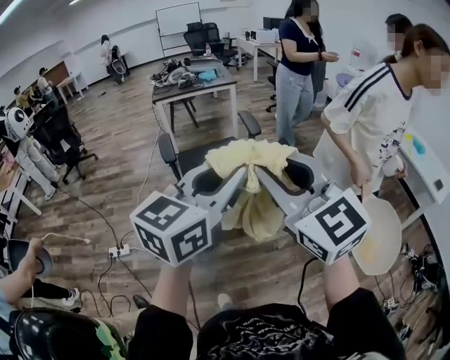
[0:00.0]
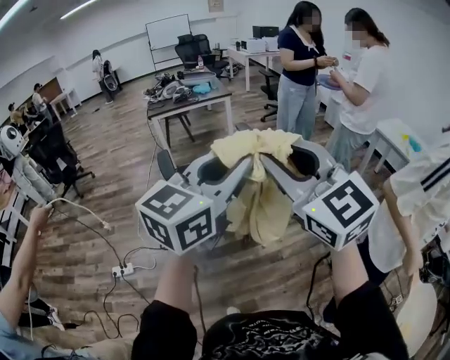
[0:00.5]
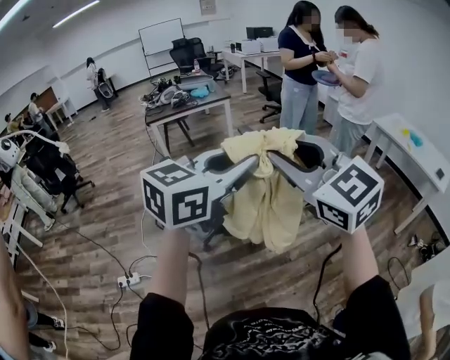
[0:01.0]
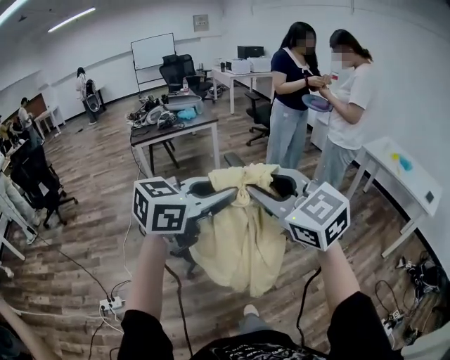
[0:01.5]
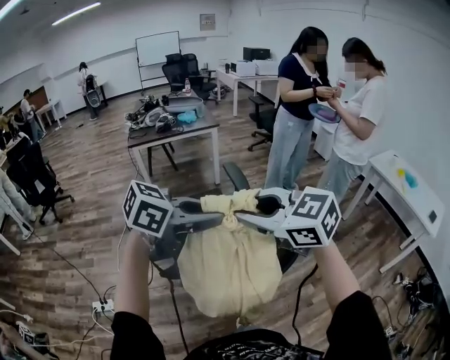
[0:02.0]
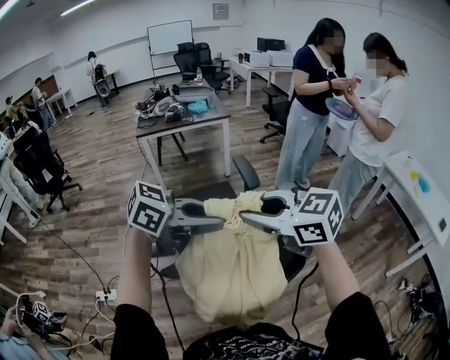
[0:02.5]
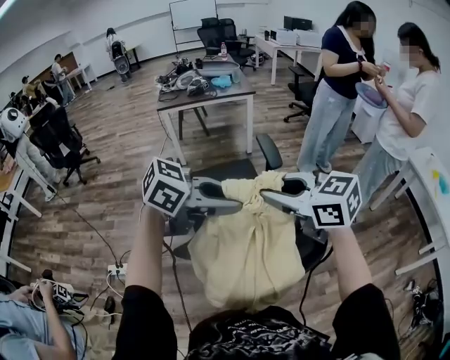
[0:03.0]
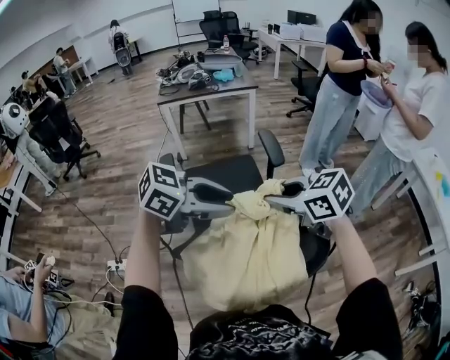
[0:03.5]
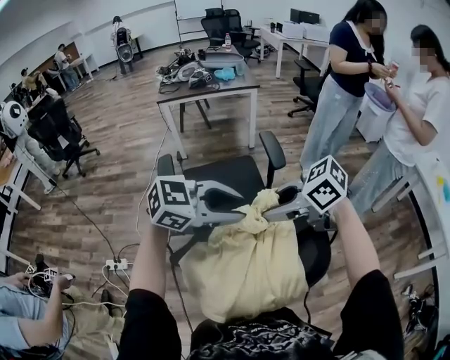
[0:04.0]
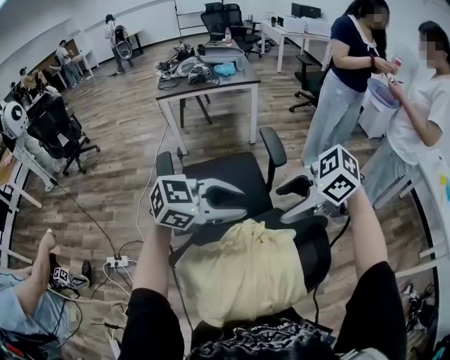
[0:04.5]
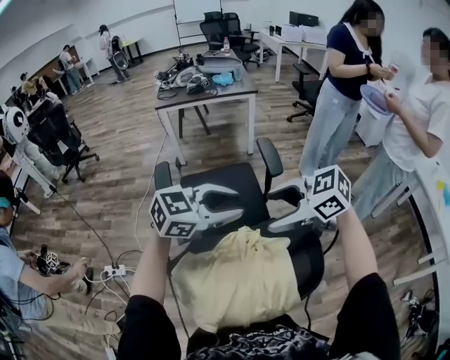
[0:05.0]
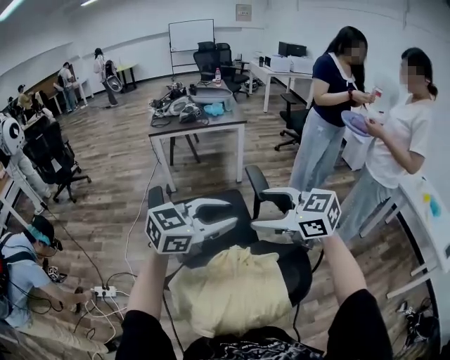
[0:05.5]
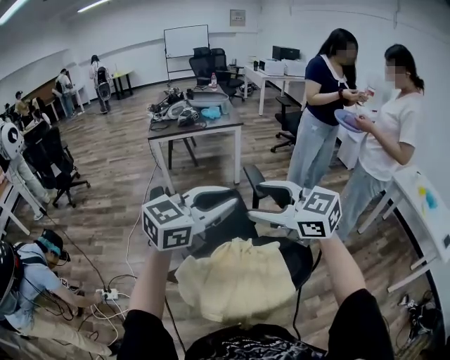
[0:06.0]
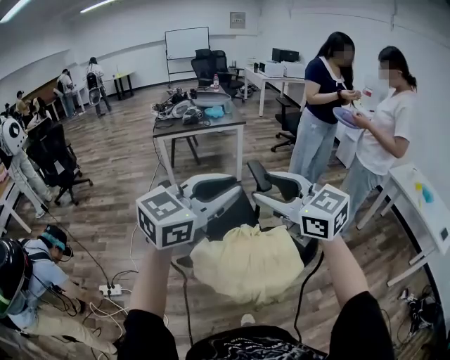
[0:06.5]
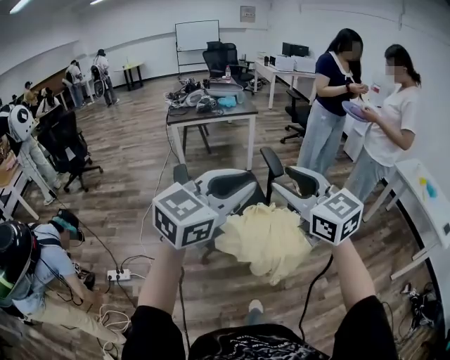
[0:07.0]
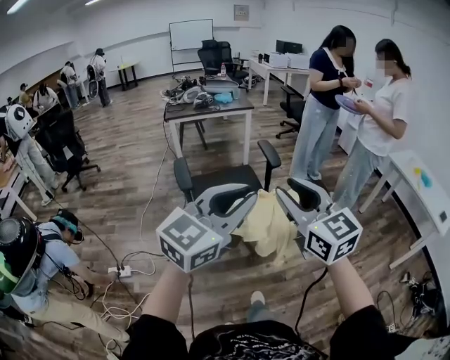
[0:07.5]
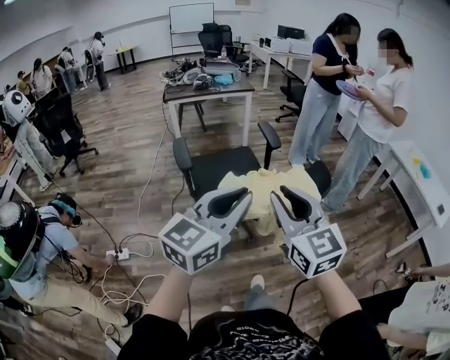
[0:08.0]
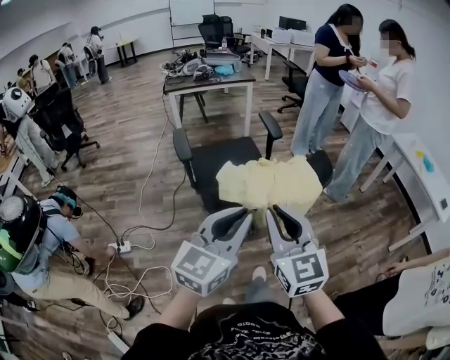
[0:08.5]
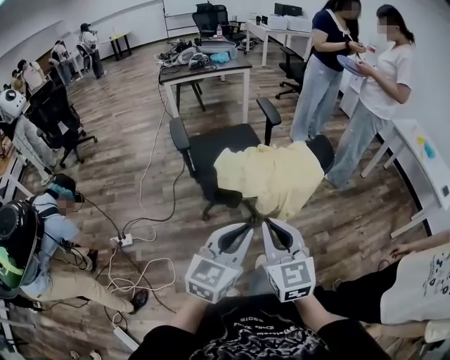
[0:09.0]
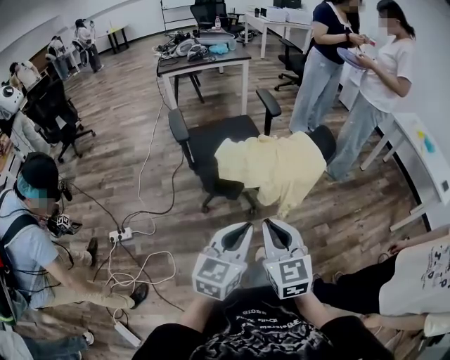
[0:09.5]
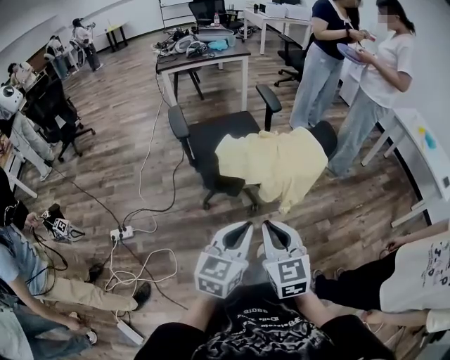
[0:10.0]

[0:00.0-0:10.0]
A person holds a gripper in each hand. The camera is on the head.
0.0 to 2.0 s: The left gripper changes place by approximately 25 cm, and turns by some 40 degrees; the right gripper ends up some 25 cm from where it was, and turns by about 30 degrees.
2.0 to 4.0 s: The left gripper is displaced downward by about 10 cm. Meanwhile the right gripper goes some 15 cm downward, and swivels approximately 40 degrees.
4.0 to 6.0 s: Both grippers travel together upward, roughly 10 cm. The left gripper turns by approximately 30 degrees. The right gripper turns by about 40 degrees.
6.0 to 8.0 s: The grippers both shift backward by approximately 25 cm. The right gripper turns by about 40 degrees, and closes up.
8.0 to 10.0 s: The left gripper is displaced downward by approximately 20 cm, and swivels approximately 20 degrees. The right gripper is displaced downward and backward by some 20 cm.

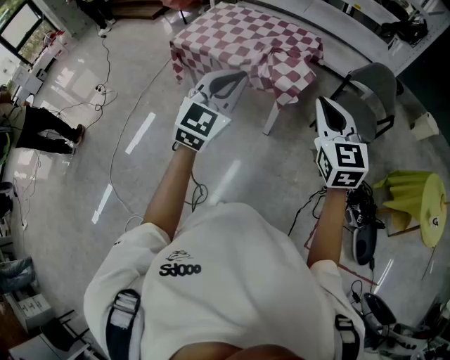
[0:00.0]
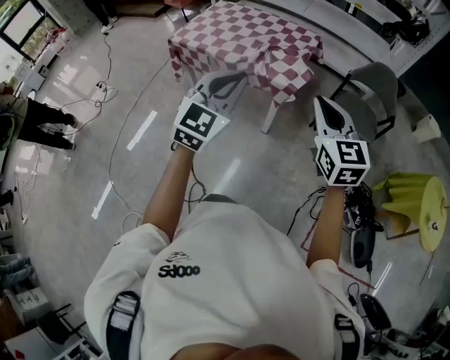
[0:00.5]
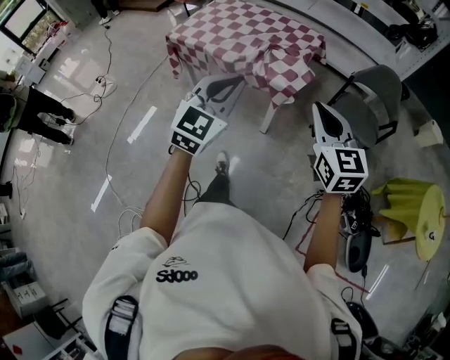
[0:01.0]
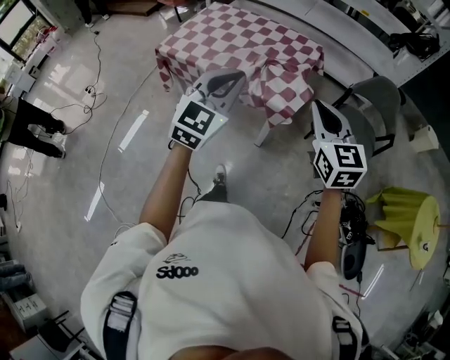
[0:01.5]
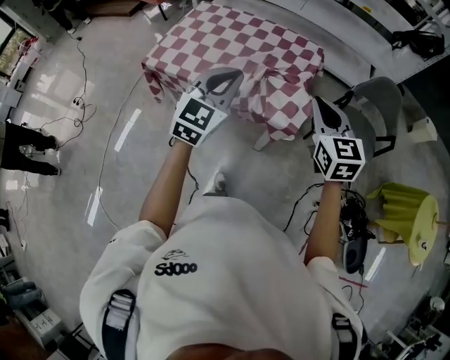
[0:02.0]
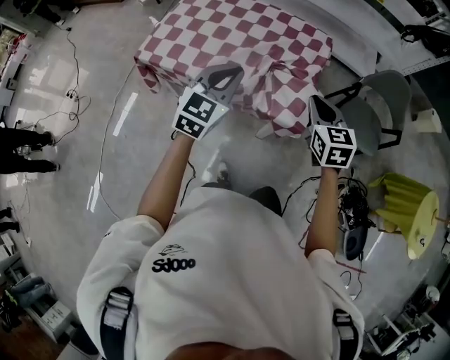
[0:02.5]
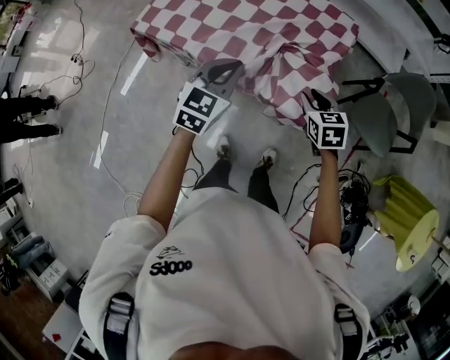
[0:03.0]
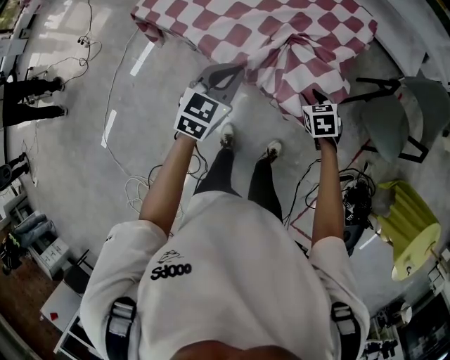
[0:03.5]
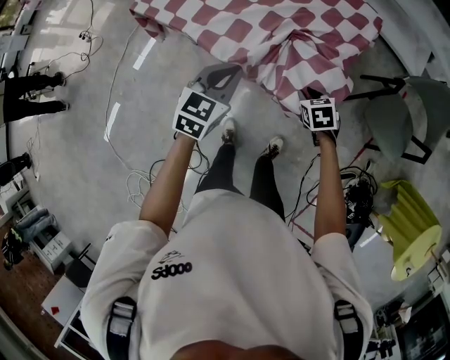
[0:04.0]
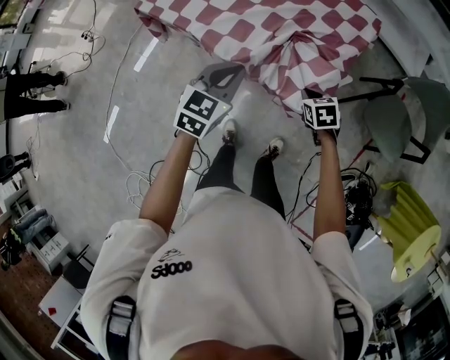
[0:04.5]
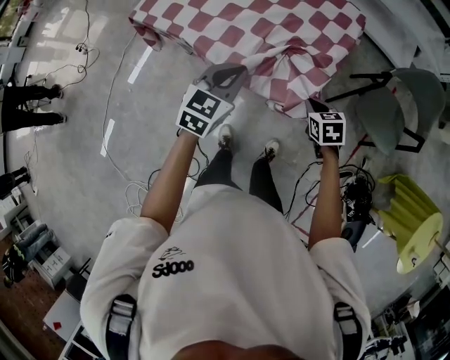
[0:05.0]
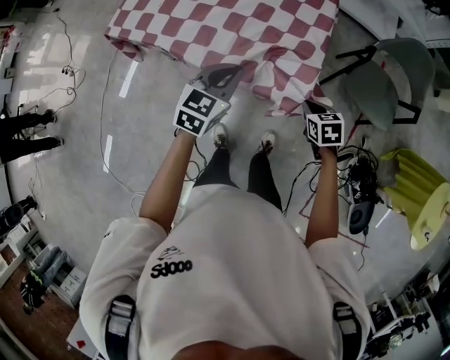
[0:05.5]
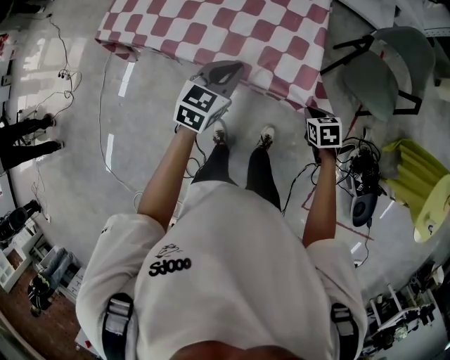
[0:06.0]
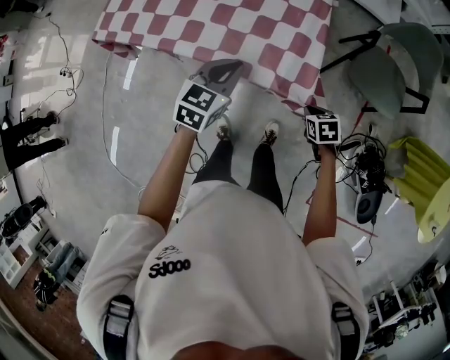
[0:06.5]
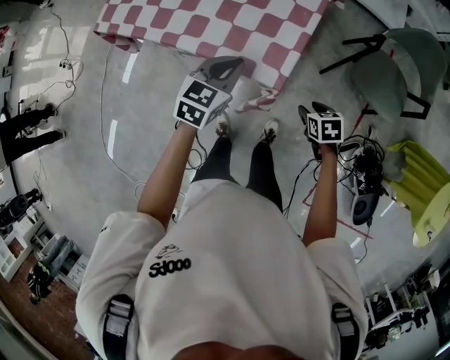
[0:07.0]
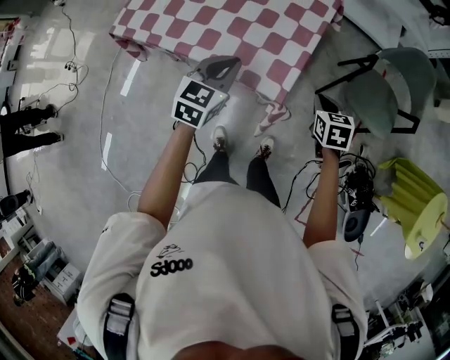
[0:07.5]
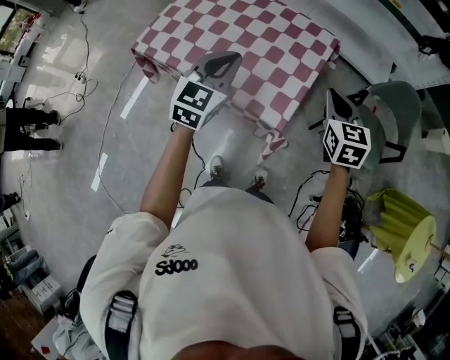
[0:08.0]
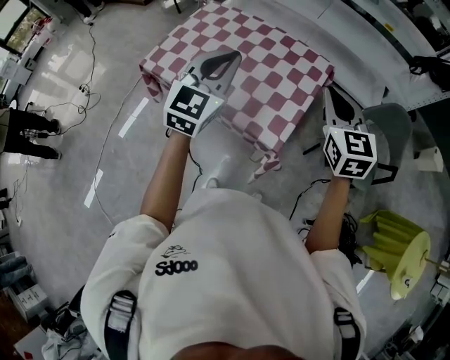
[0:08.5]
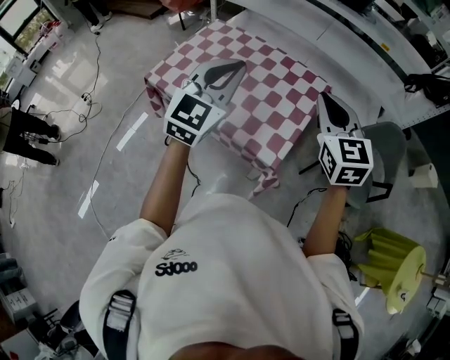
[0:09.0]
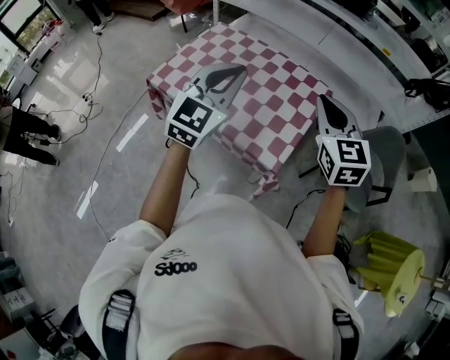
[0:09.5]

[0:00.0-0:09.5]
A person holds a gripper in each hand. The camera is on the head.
0.0 to 2.0 s: Both grippers move forward, some 30 cm.
2.0 to 4.0 s: The left gripper heads downward, covering about 25 cm, and changes its angle by some 30 degrees, while the right gripper moves downward, roughly 40 cm, points its fingers about 40 degrees further downward, and opens.
4.0 to 5.5 s: The right gripper is displaced to the right, backward and upward by some 15 cm, and closes its fingers. Meanwhile the left gripper goes about 10 cm to the right.
5.5 to 7.5 s: The right gripper shifts by approximately 5 cm, and opens, then closes again.
7.5 to 9.5 s: The left gripper travels upward by some 25 cm, and turns by some 30 degrees. Meanwhile the right gripper shifts some 40 cm upward and to the left, and angles its fingers upward, by approximately 40 degrees.

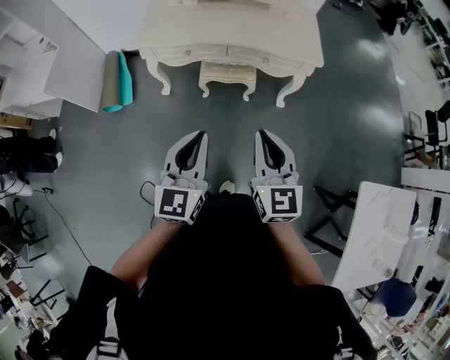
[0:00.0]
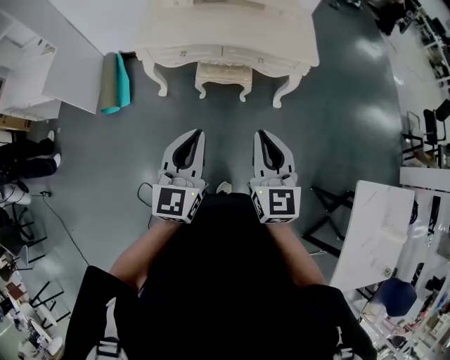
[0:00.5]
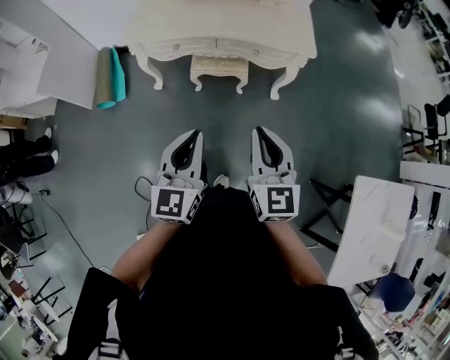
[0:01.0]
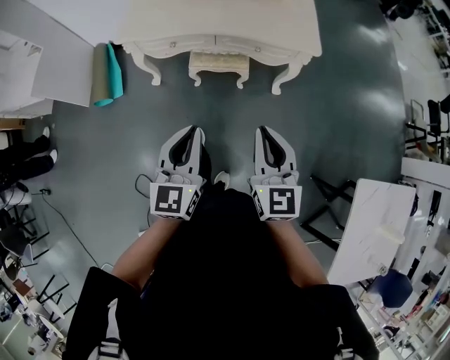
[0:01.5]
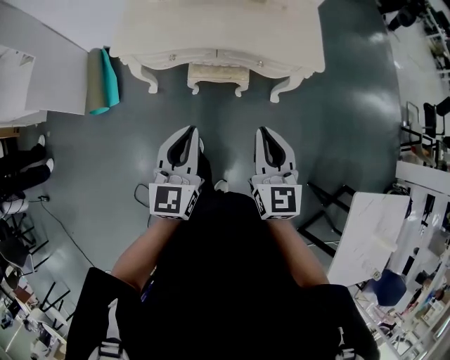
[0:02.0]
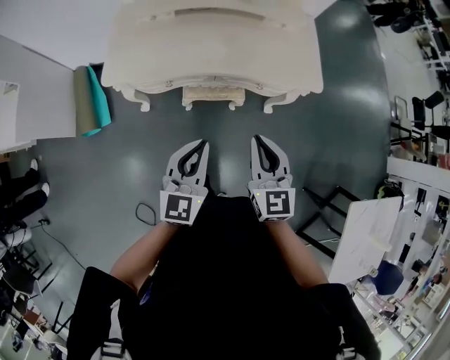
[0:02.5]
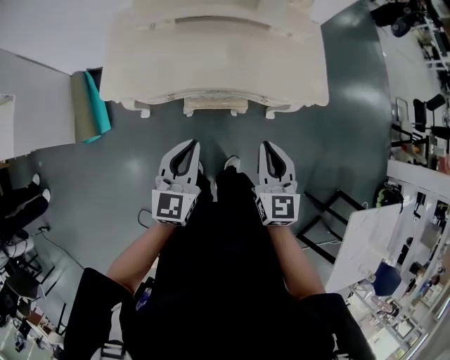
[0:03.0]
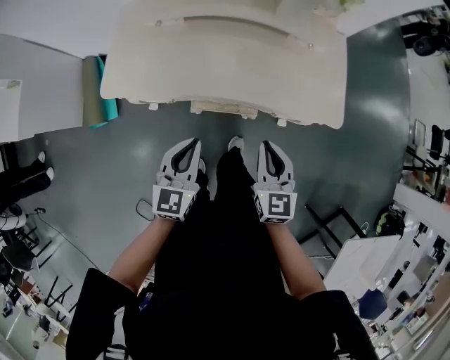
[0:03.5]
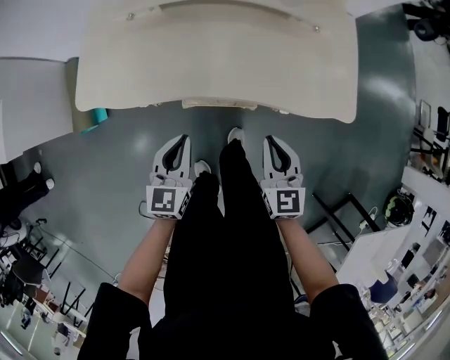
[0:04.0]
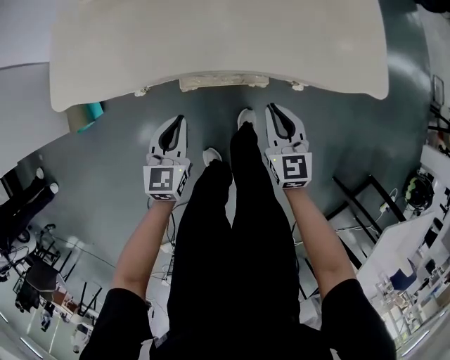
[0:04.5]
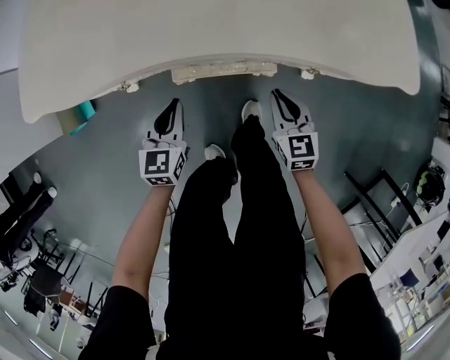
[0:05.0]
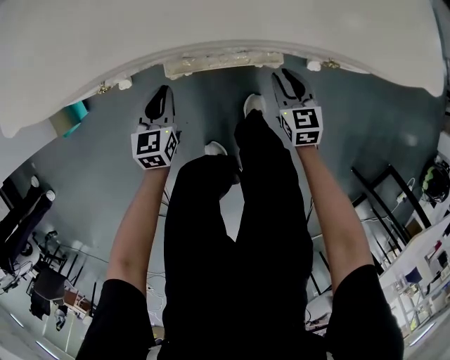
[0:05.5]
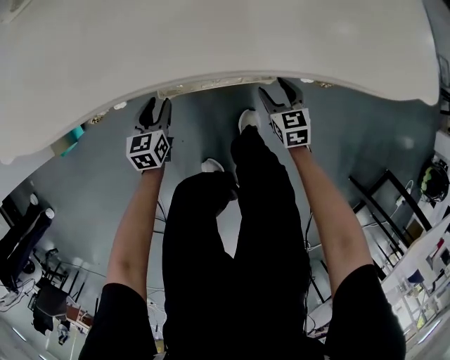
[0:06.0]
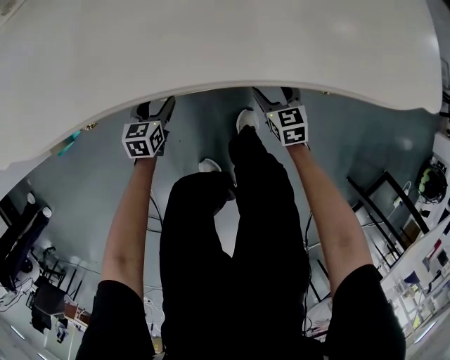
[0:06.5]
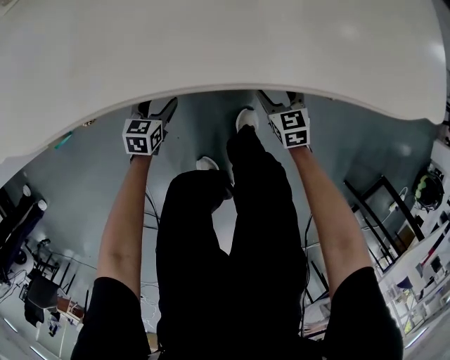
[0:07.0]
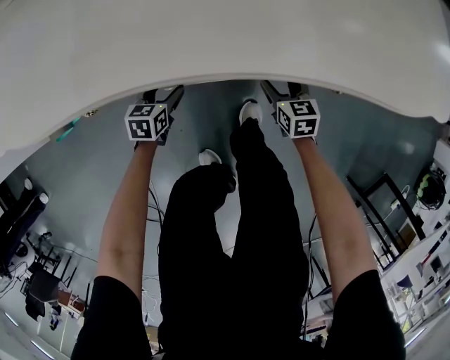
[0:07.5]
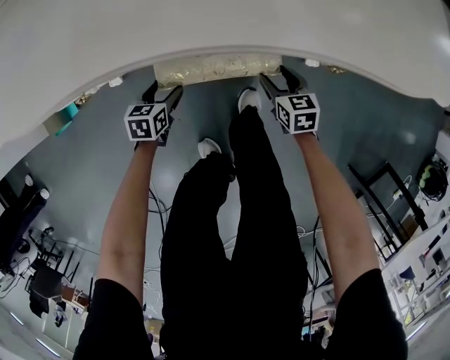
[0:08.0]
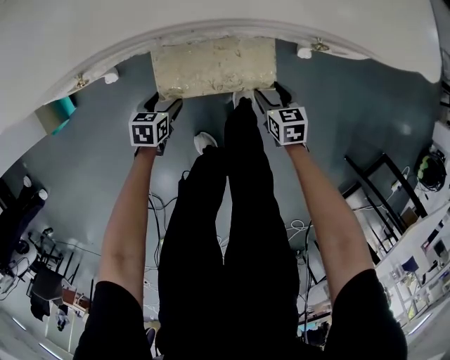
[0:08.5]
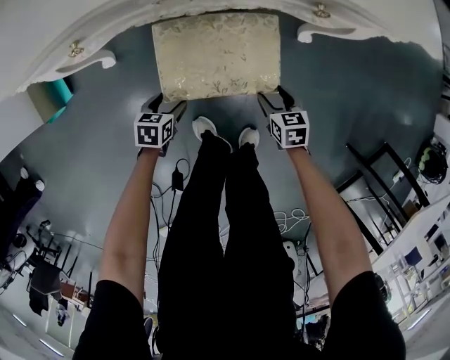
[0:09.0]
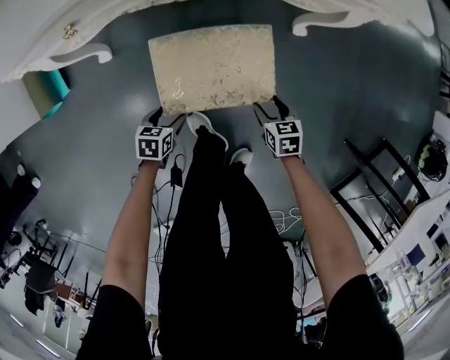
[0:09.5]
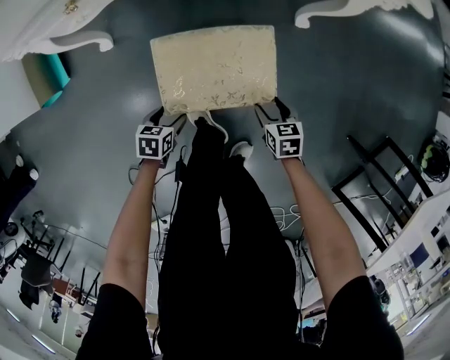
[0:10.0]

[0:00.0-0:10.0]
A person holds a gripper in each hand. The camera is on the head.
0.0 to 2.0 s: The two grippers go approximately 15 cm forward.
2.0 to 4.0 s: The grippers both shift forward and downward by approximately 30 cm.
4.0 to 6.0 s: The two grippers go some 40 cm downward. The left gripper opens up; the right gripper turns by approximately 20 degrees, and opens.
6.0 to 8.0 s: The left gripper heads downward, covering roughly 5 cm, and opens its fingers.
8.0 to 10.0 s: The grippers both shift backward by roughly 30 cm.
